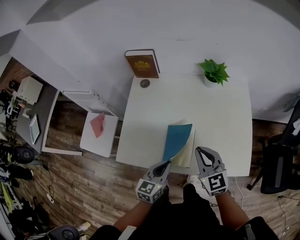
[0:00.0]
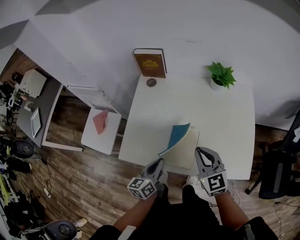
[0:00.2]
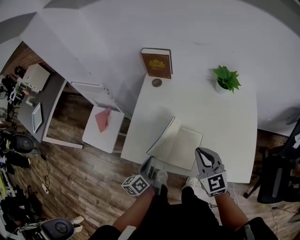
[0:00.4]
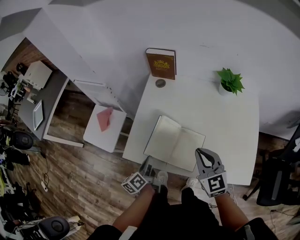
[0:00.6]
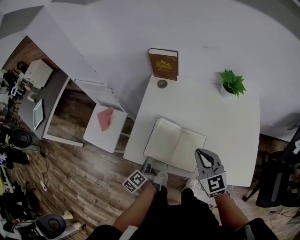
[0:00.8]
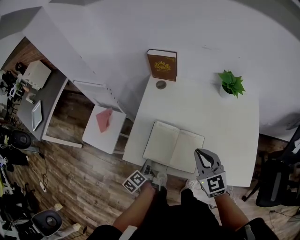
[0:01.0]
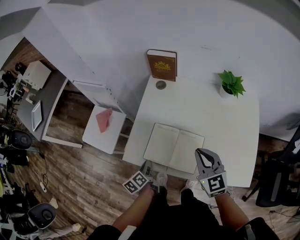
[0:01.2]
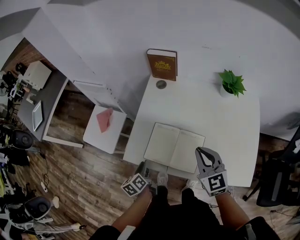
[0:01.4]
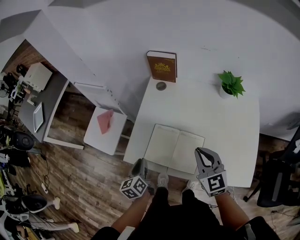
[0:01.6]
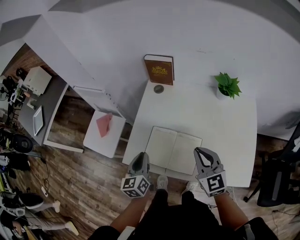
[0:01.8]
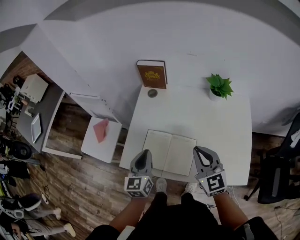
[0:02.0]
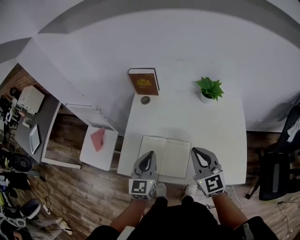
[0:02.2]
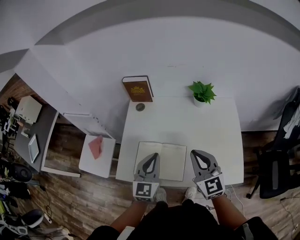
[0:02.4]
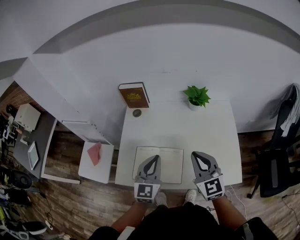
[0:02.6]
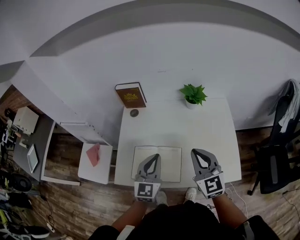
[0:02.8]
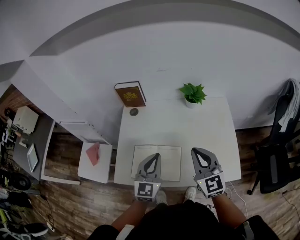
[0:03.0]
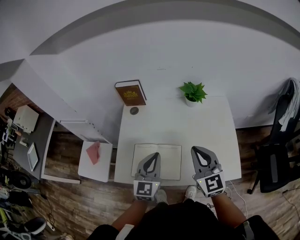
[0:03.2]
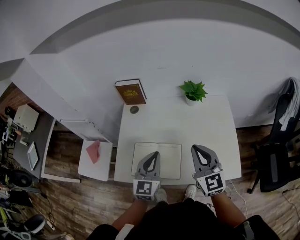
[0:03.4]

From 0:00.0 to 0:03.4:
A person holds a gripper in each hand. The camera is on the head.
From 0:00.0 to 0:01.6: The right gripper goes some 5 cm to the left. The left gripper is displaced to the left by about 20 cm, and rotates about 40 degrees.
From 0:01.6 to 0:03.4: The right gripper is displaced upward and to the right by roughly 15 cm, and turns by approximately 20 degrees. Meanwhile the left gripper is displaced to the right and upward by roughly 25 cm, and rotates around the line of its fingers by roughly 40 degrees, clockwise from behind.

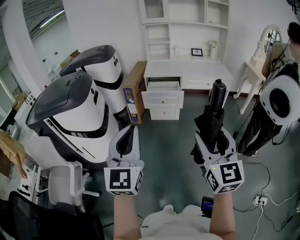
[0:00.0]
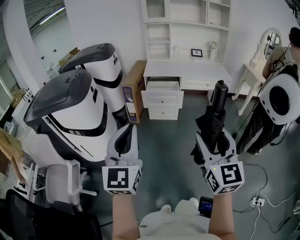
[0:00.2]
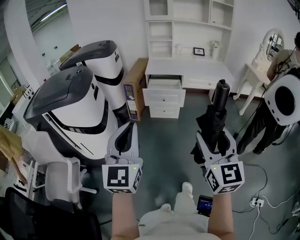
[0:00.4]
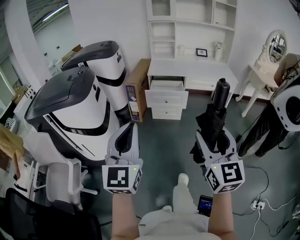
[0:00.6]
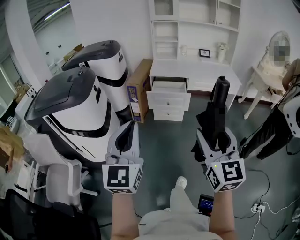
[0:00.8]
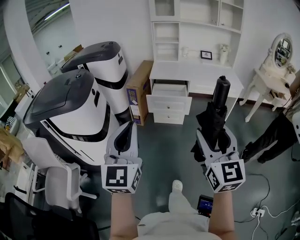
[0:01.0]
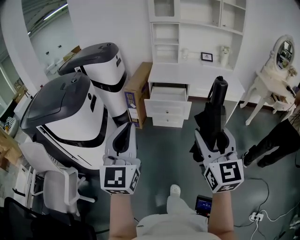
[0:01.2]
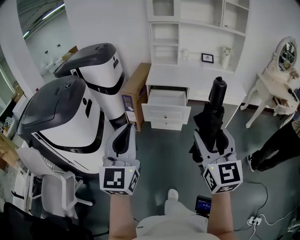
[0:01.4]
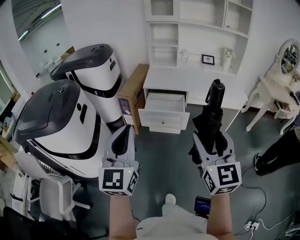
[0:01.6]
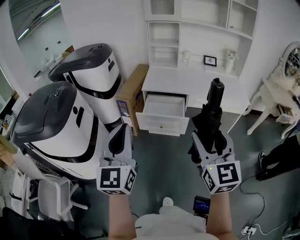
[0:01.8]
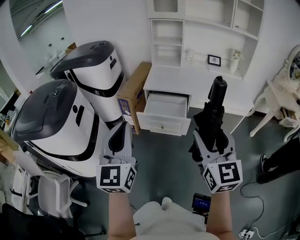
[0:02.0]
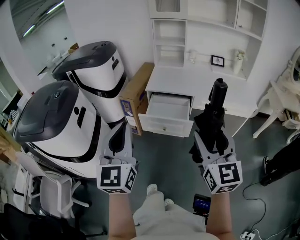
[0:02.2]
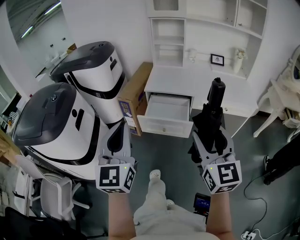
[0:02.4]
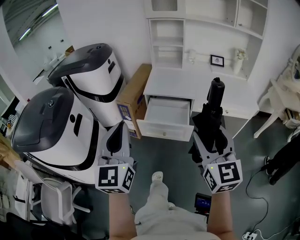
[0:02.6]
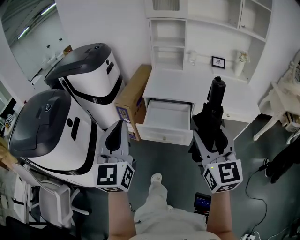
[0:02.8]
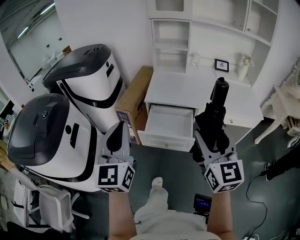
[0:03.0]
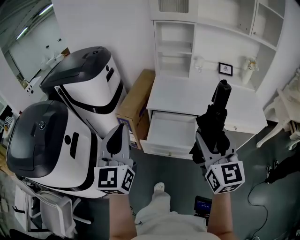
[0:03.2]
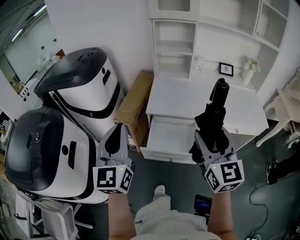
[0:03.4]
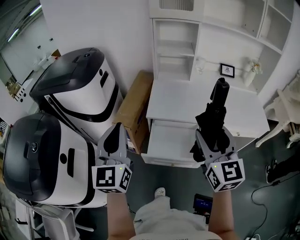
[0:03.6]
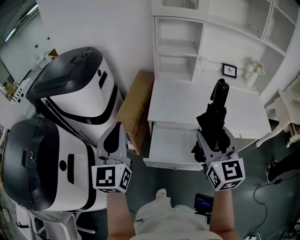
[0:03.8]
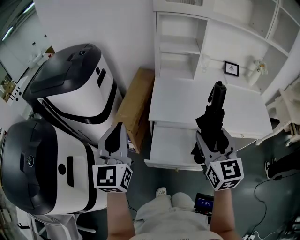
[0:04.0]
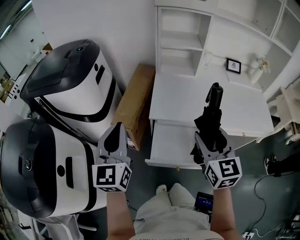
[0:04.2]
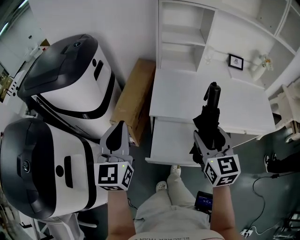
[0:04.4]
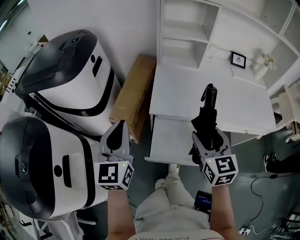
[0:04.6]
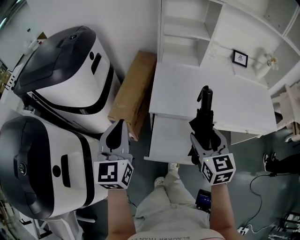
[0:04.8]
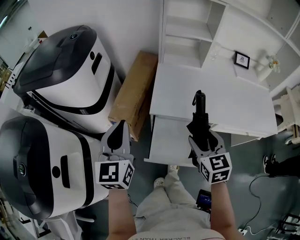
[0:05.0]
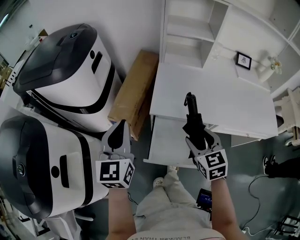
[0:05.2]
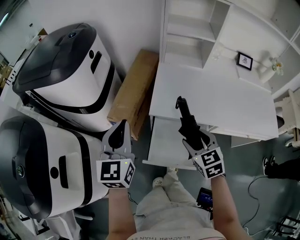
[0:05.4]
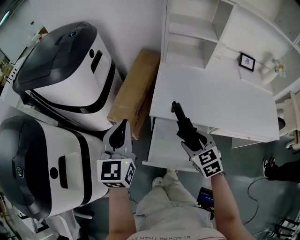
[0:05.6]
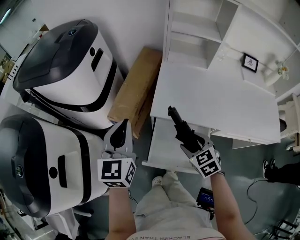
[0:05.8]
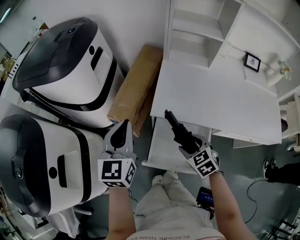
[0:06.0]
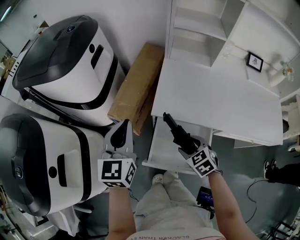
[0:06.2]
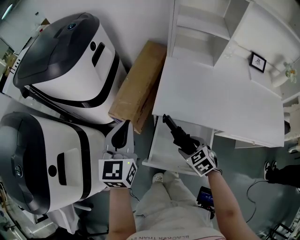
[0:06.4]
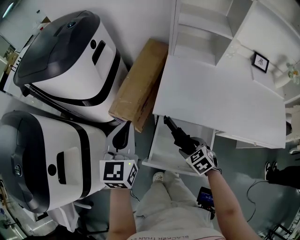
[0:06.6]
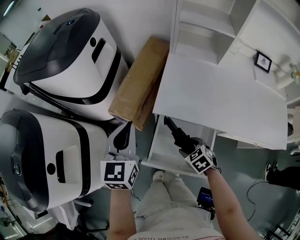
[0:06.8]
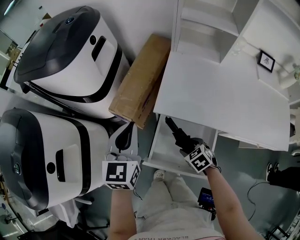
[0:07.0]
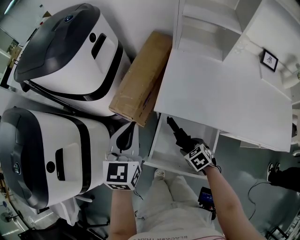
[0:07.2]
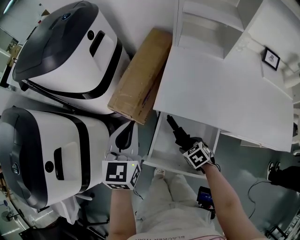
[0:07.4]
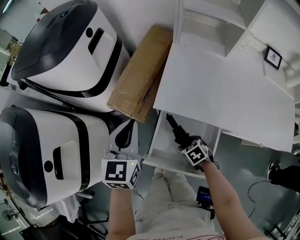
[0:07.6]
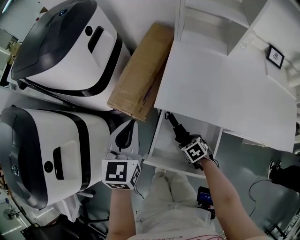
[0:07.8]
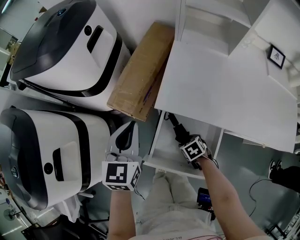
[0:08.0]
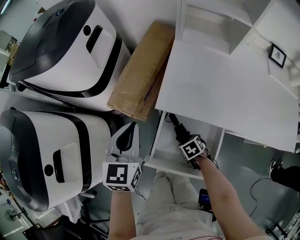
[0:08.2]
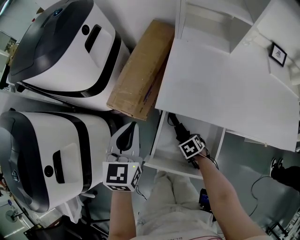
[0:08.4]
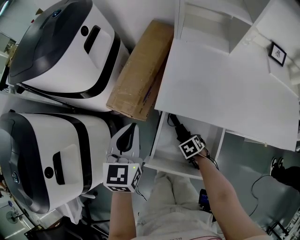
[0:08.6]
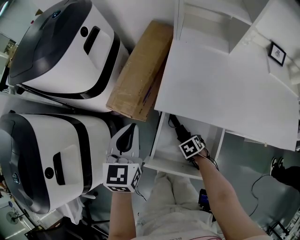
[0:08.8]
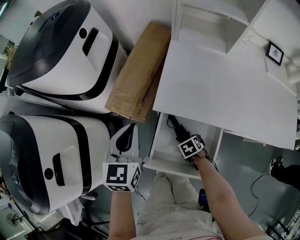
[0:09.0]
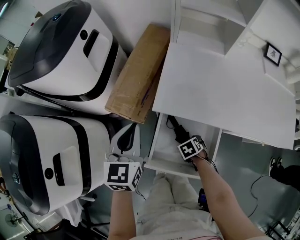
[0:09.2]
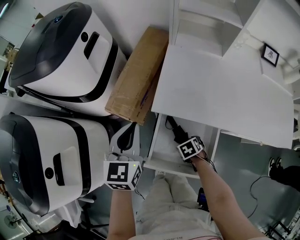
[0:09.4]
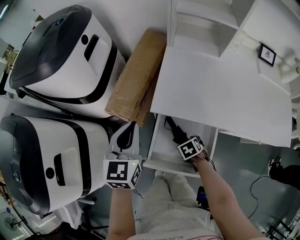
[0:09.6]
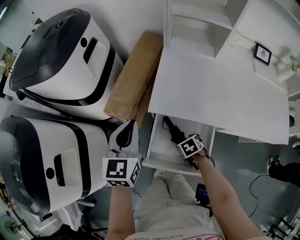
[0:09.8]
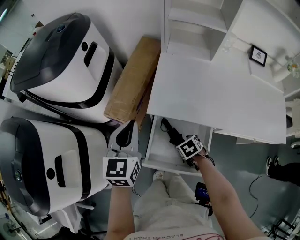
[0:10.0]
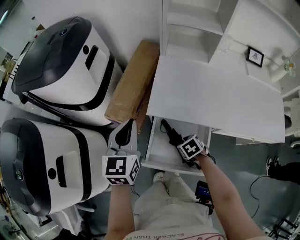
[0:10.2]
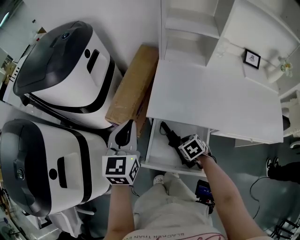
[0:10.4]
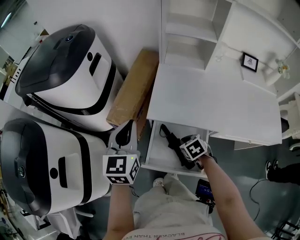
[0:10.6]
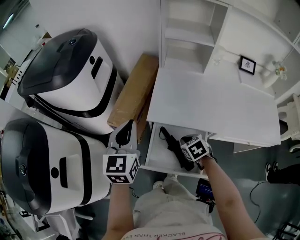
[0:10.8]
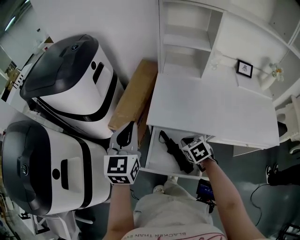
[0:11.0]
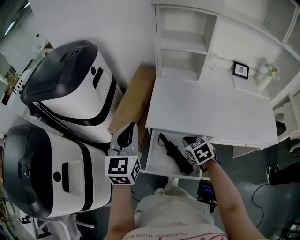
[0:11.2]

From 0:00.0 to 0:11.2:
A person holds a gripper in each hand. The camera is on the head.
From 0:00.0 to 0:01.6: Both grippers travel together forward, about 25 cm.
From 0:01.6 to 0:03.2: Both grippers travel together forward, roughly 30 cm.
From 0:03.2 to 0:04.8: Both grippers move forward and downward, roughly 25 cm. The right gripper rotates about 20 degrees.
From 0:04.8 to 0:06.4: The right gripper shifts about 20 cm downward, and points its fingers about 30 degrees further downward. The left gripper is displaced downward by approximately 5 cm.
From 0:06.4 to 0:08.0: The right gripper shifts about 15 cm downward, and changes its angle by about 20 degrees. Meanwhile the left gripper goes approximately 5 cm downward.
From 0:08.0 to 0:09.6: The grippers make only small movements.
From 0:09.6 to 0:11.2: The right gripper heads upward, covering roughly 20 cm, swivels approximately 30 degrees, and closes, while the left gripper shifts some 10 cm upward.

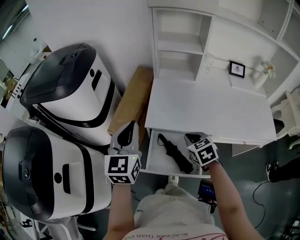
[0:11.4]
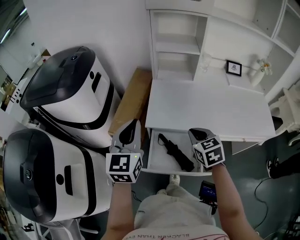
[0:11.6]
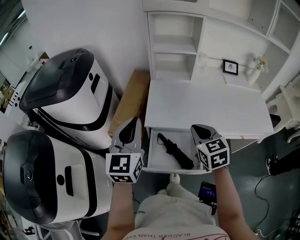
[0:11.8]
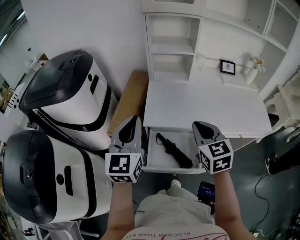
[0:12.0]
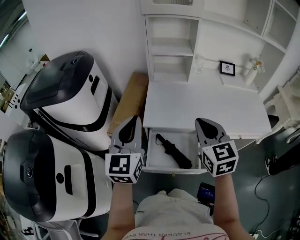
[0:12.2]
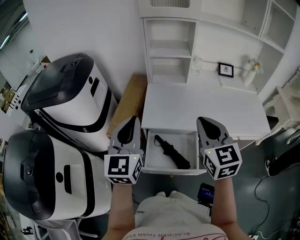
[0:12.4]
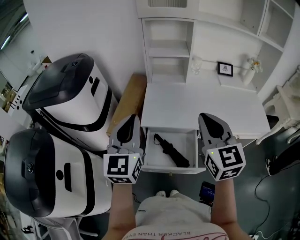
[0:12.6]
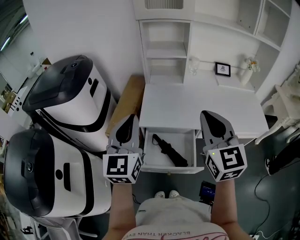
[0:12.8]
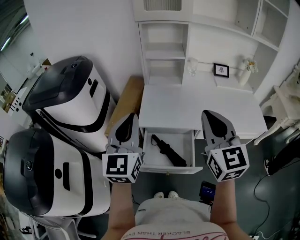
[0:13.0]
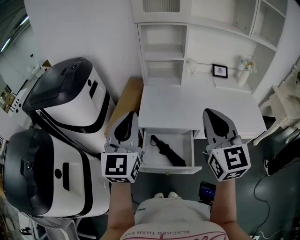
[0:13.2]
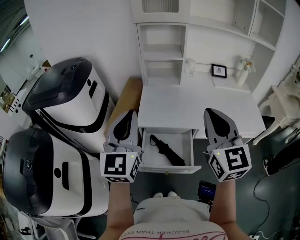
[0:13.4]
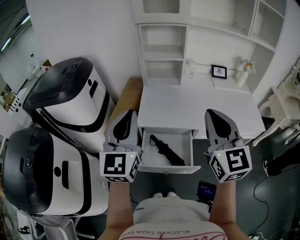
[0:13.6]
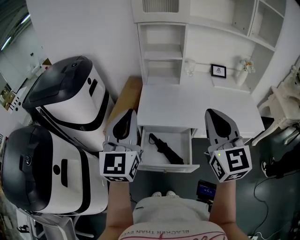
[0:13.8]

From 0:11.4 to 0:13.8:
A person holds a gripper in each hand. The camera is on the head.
From 0:11.4 to 0:12.6: The left gripper is displaced upward and backward by some 10 cm. Meanwhile the right gripper moves upward, approximately 25 cm, and points its fingers some 40 degrees further upward.
From 0:12.6 to 0:13.8: The left gripper ends up about 5 cm from where it was, while the right gripper changes place by some 10 cm.

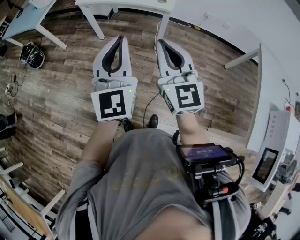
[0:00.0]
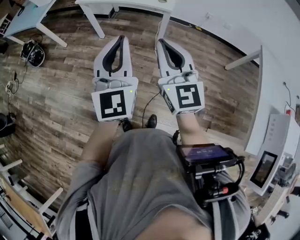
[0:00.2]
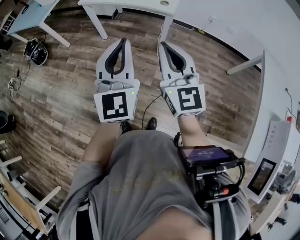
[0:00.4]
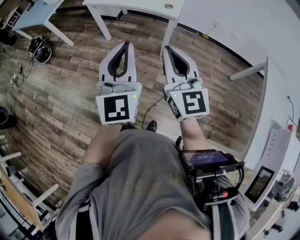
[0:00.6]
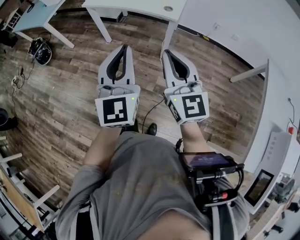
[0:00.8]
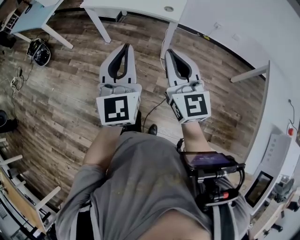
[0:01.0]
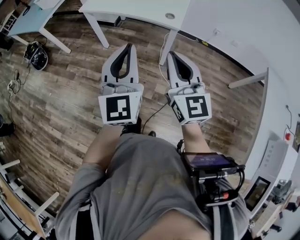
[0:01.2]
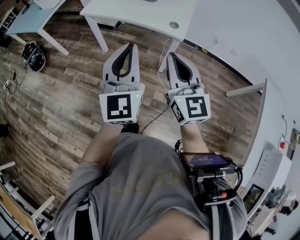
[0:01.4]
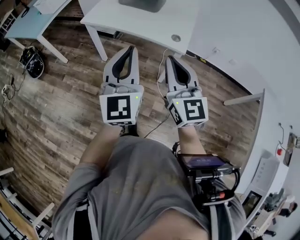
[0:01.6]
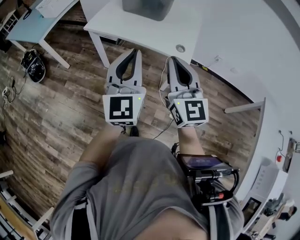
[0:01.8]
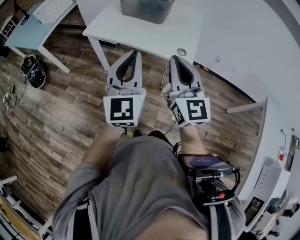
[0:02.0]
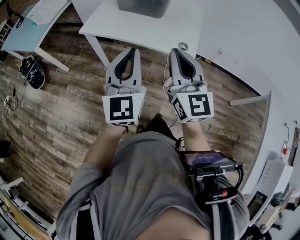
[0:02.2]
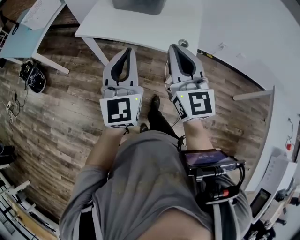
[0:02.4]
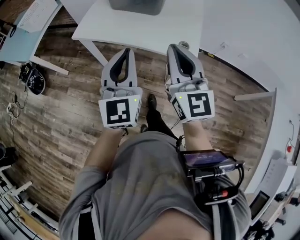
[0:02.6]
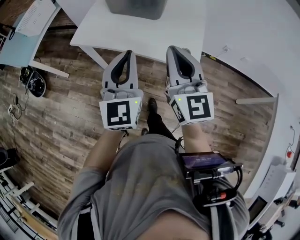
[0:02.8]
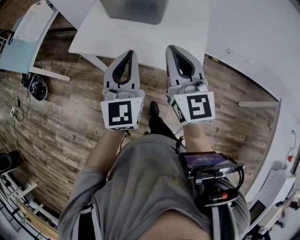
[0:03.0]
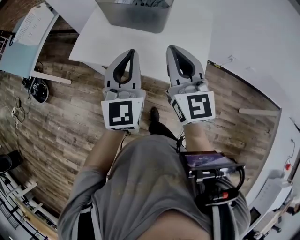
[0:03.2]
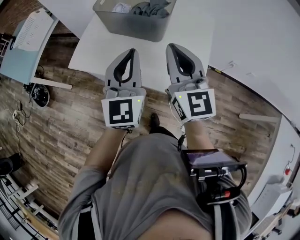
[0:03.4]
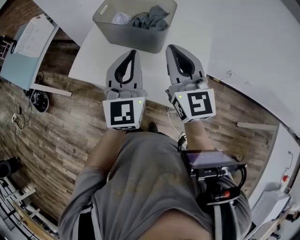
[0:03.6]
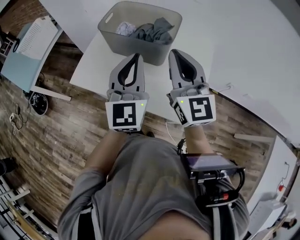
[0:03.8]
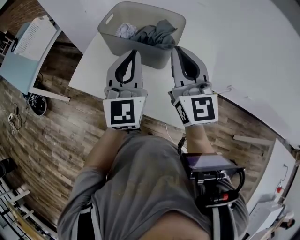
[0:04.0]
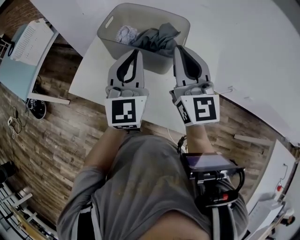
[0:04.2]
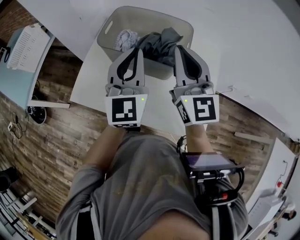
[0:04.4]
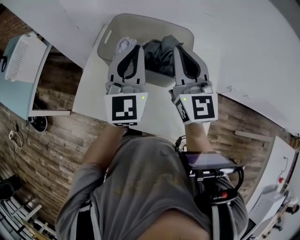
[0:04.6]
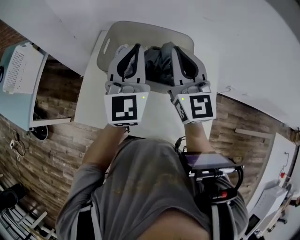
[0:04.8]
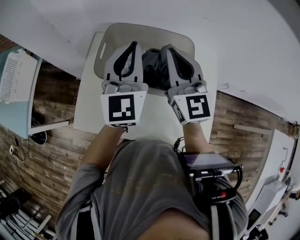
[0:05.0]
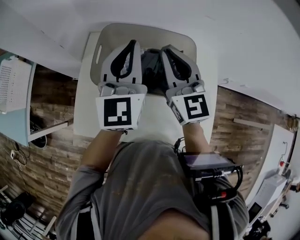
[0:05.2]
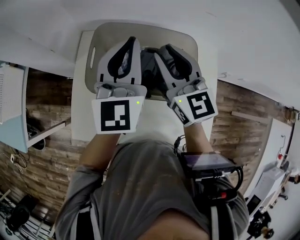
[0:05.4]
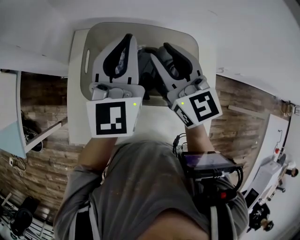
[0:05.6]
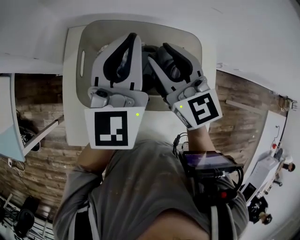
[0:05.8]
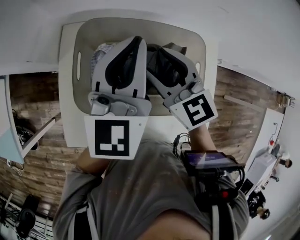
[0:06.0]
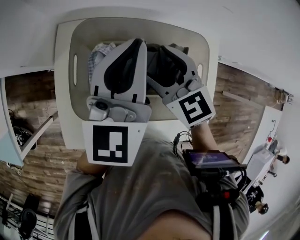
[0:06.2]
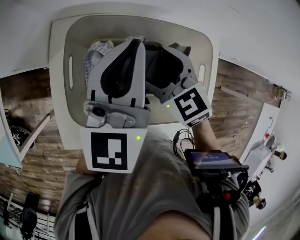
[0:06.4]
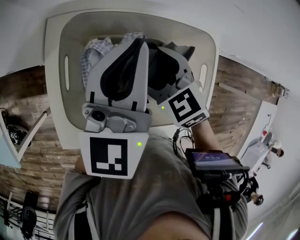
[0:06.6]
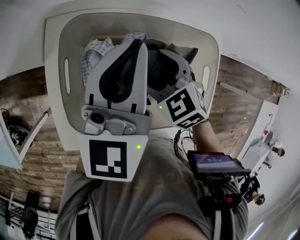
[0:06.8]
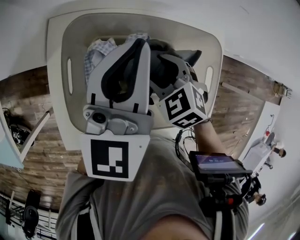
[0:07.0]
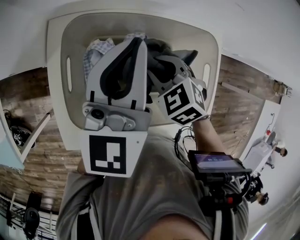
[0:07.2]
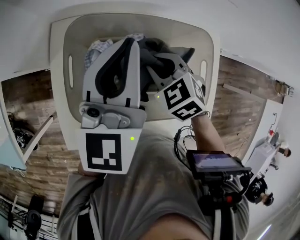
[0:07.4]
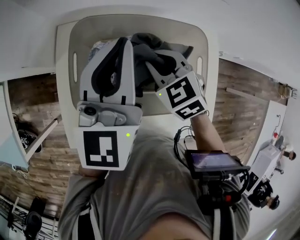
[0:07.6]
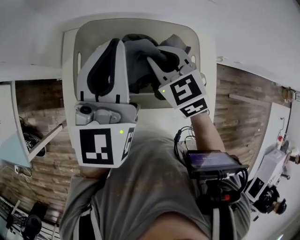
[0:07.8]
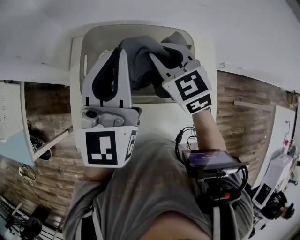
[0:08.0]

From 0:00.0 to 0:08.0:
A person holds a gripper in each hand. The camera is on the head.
From 0:00.0 to 0:01.6: Both grippers move forward, about 20 cm.
From 0:01.6 to 0:03.2: The two grippers go approximately 30 cm forward.
From 0:03.2 to 0:04.8: Both grippers travel together forward, some 30 cm.
From 0:04.8 to 0:06.4: The right gripper shifts some 20 cm downward and forward, tilts its fingers roughly 40 degrees downward, and opens its fingers; the left gripper heads forward and downward, covering approximately 15 cm, and swivels some 30 degrees.
From 0:06.4 to 0:08.0: The right gripper heads upward, covering roughly 10 cm, and closes. Meanwhile the left gripper shifts some 10 cm upward and backward.
